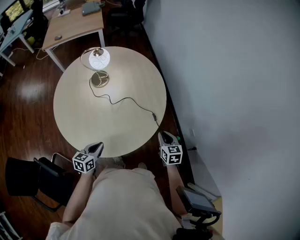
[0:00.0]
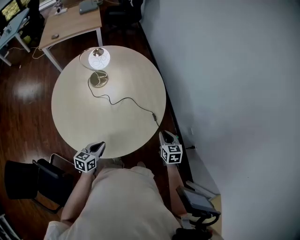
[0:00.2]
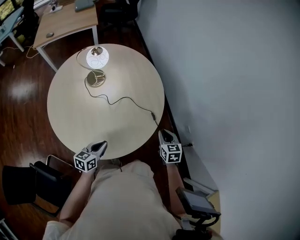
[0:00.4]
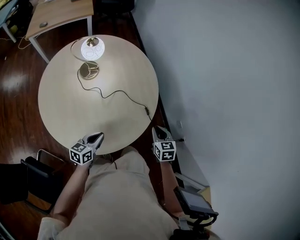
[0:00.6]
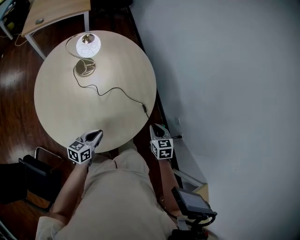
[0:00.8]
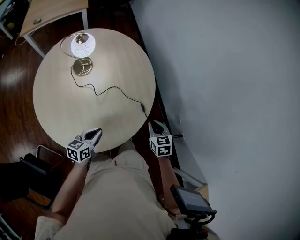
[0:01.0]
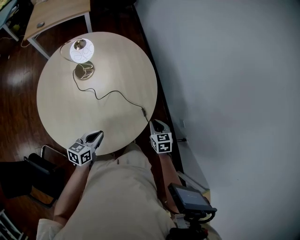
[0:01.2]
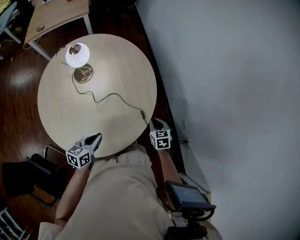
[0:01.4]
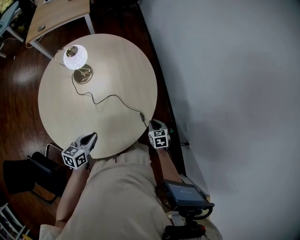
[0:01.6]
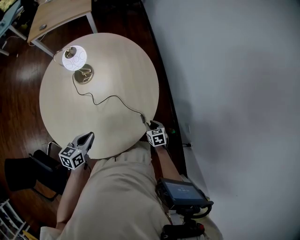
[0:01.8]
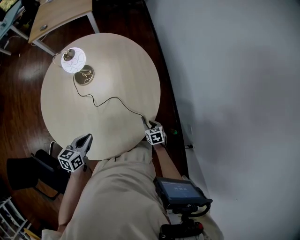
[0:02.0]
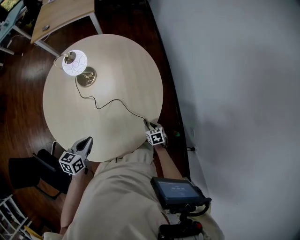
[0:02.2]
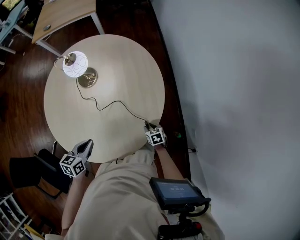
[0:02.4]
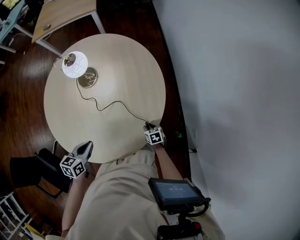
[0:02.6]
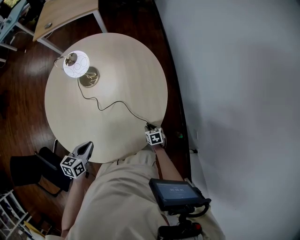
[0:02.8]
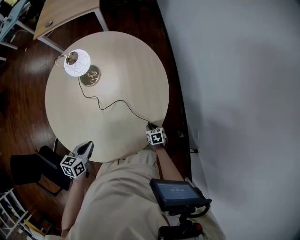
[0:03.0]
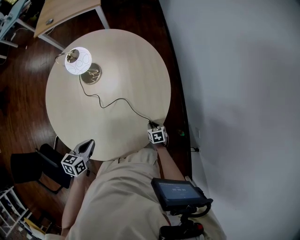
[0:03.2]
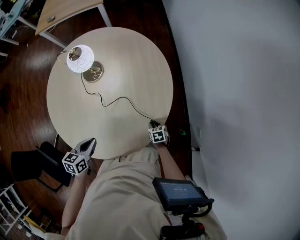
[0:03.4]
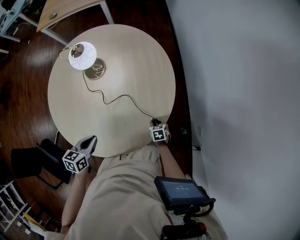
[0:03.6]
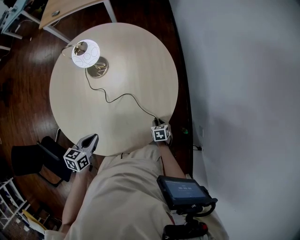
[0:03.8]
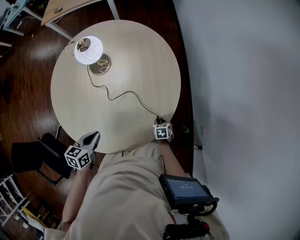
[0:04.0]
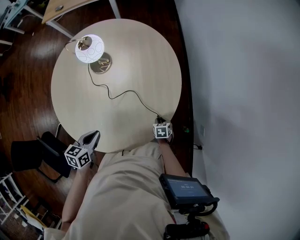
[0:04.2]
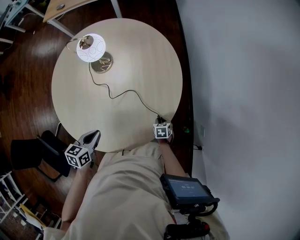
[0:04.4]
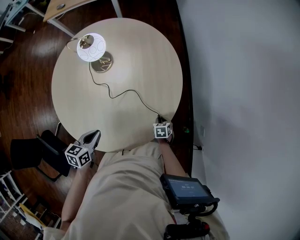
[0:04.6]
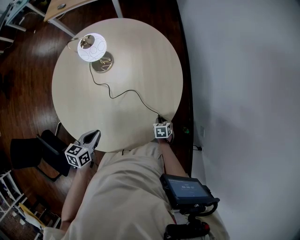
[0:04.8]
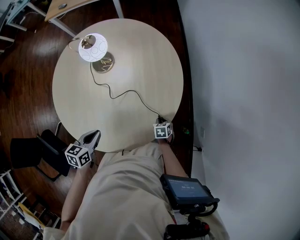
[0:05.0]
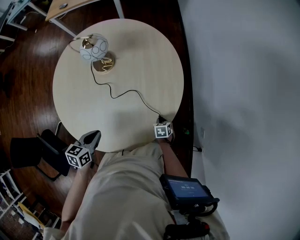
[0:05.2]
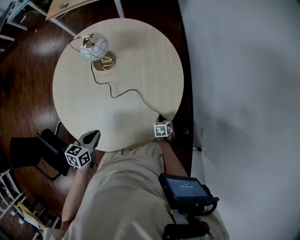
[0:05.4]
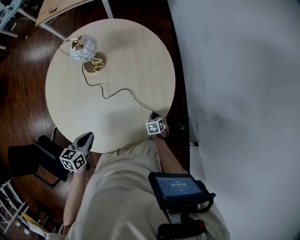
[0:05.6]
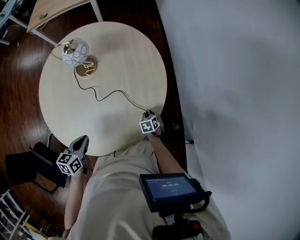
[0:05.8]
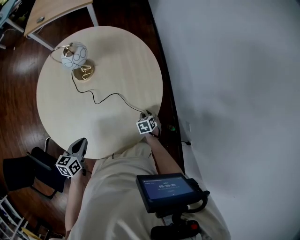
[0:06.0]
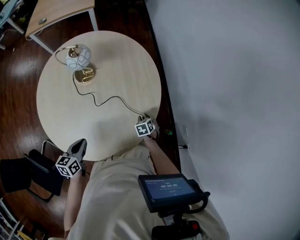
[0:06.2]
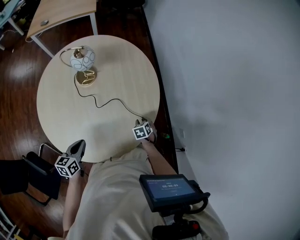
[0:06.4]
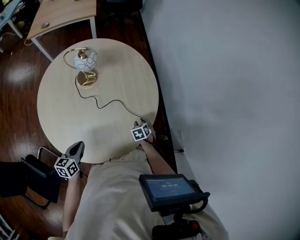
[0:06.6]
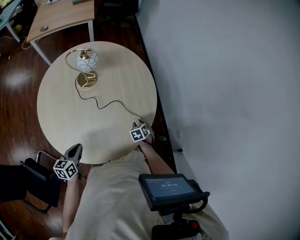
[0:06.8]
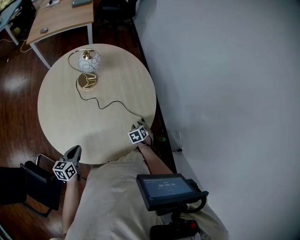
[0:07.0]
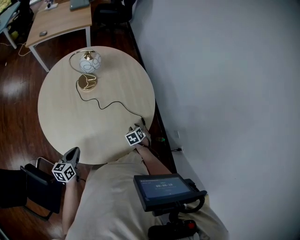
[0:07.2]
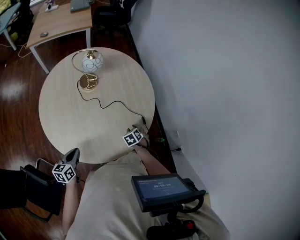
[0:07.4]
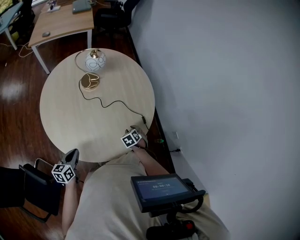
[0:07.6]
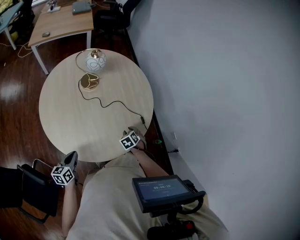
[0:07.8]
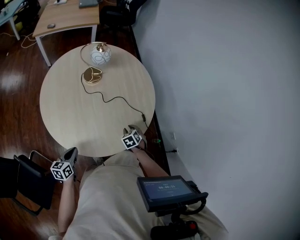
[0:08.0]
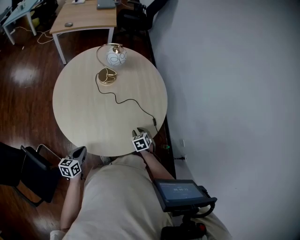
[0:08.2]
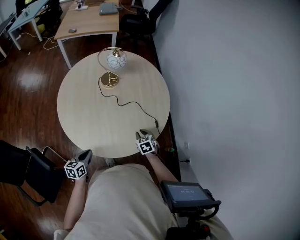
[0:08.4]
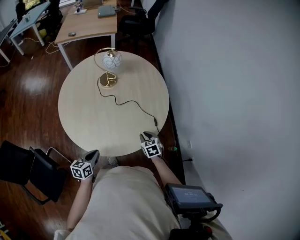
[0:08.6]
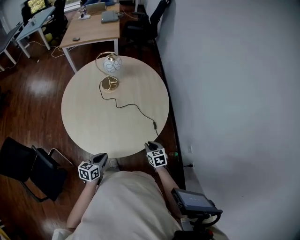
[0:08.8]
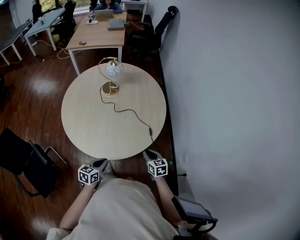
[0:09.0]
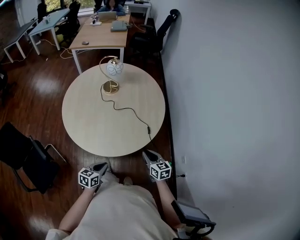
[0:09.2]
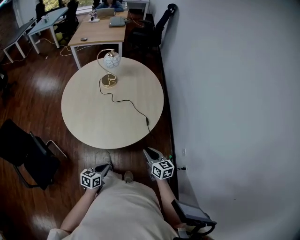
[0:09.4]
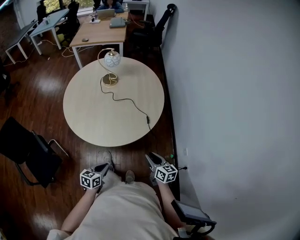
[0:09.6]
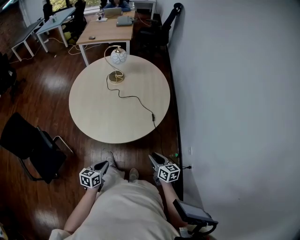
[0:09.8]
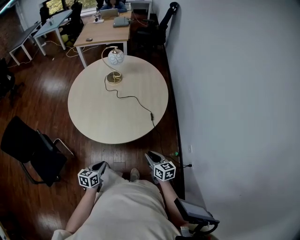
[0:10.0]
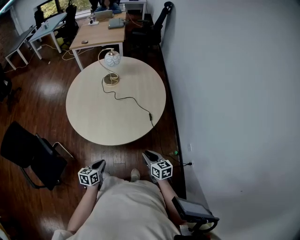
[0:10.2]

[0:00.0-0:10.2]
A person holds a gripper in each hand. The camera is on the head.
0:00.0 to 0:01.4: The left gripper goes approximately 10 cm forward. The right gripper moves forward and downward, some 15 cm.
0:01.4 to 0:03.0: The left gripper shifts by approximately 5 cm, while the right gripper travels downward by approximately 20 cm, and rotates approximately 20 degrees.
0:03.0 to 0:05.8: The grippers move only a little.
0:05.8 to 0:07.2: The right gripper shifts some 15 cm upward, to the left and backward. The left gripper is displaced to the left and backward by approximately 15 cm.
0:07.2 to 0:08.8: The right gripper moves backward, upward and to the right, approximately 15 cm, and changes its angle by roughly 30 degrees. Meanwhile the left gripper heads to the right and backward, covering some 15 cm.
0:08.8 to 0:10.2: The two grippers go roughly 15 cm backward. The right gripper swivels some 20 degrees.

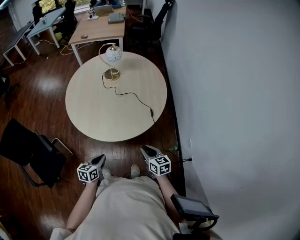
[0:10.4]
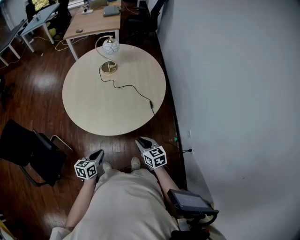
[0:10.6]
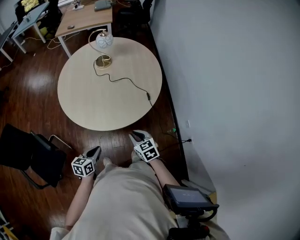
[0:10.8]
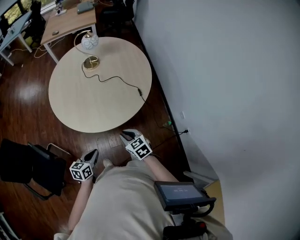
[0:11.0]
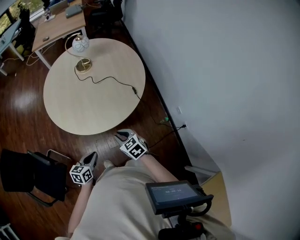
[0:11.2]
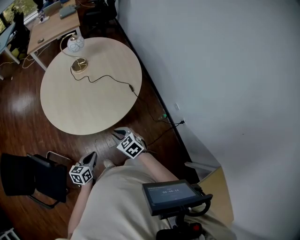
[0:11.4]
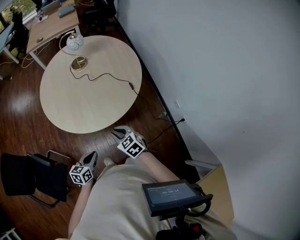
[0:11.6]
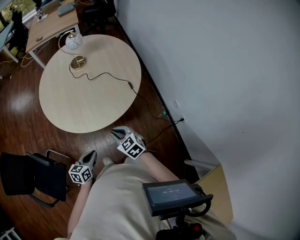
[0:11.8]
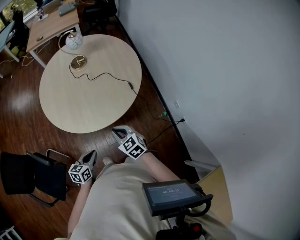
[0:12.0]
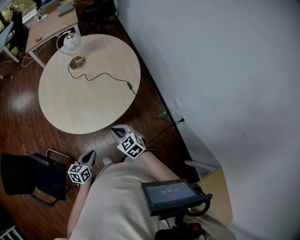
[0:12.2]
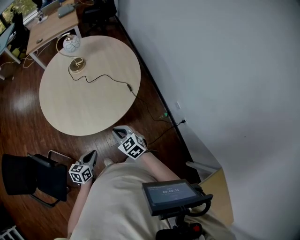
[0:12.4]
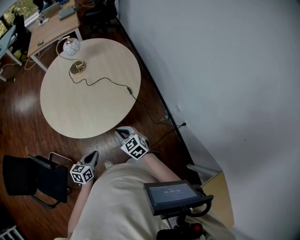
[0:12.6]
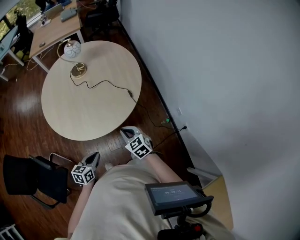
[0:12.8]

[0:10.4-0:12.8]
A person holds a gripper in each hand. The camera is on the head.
0:10.4 to 0:11.6: The left gripper heads to the left, covering about 5 cm; the right gripper travels to the left by some 15 cm, and turns by roughly 20 degrees.
0:11.6 to 0:12.8: The left gripper shifts approximately 5 cm to the right; the right gripper shifts approximately 10 cm to the right.

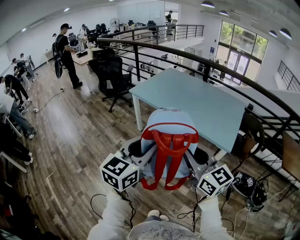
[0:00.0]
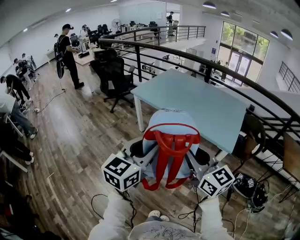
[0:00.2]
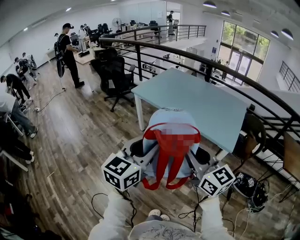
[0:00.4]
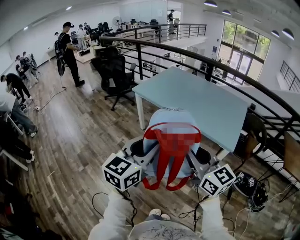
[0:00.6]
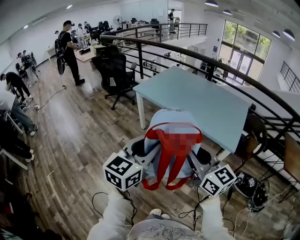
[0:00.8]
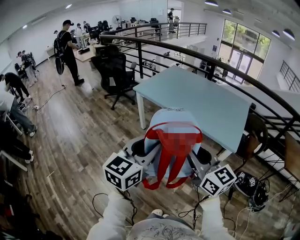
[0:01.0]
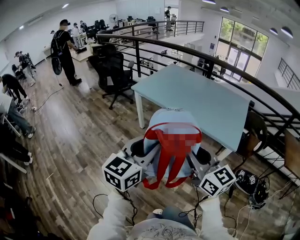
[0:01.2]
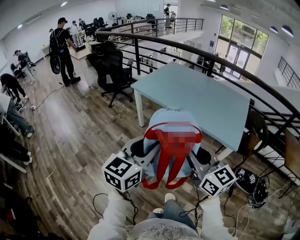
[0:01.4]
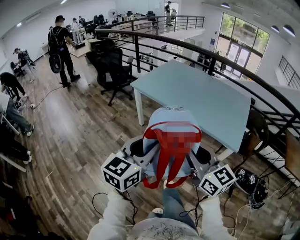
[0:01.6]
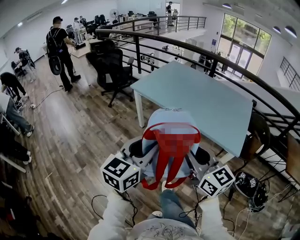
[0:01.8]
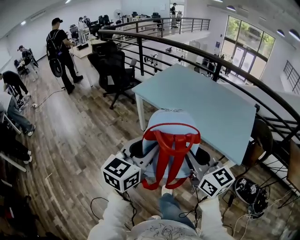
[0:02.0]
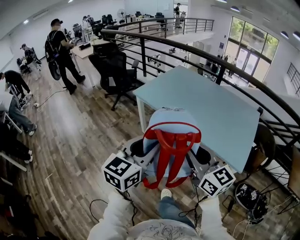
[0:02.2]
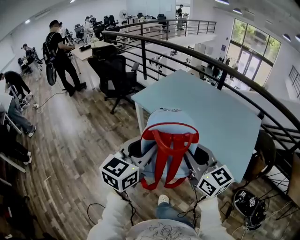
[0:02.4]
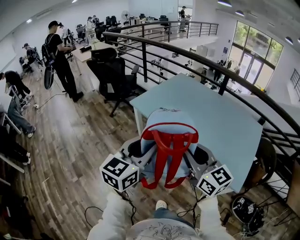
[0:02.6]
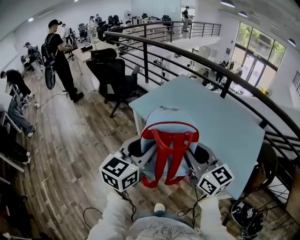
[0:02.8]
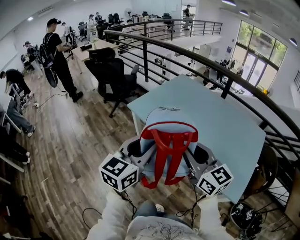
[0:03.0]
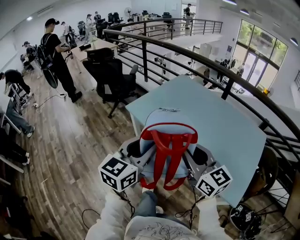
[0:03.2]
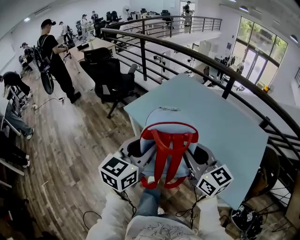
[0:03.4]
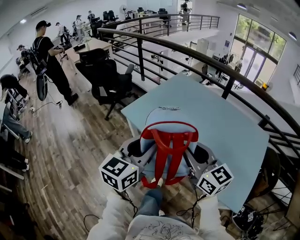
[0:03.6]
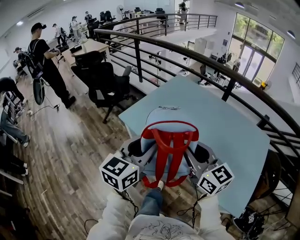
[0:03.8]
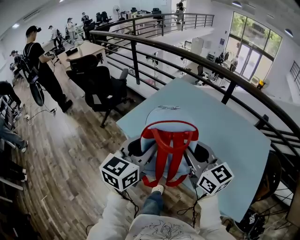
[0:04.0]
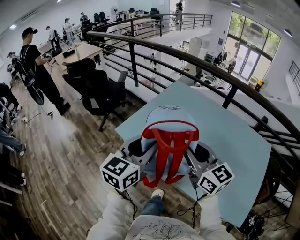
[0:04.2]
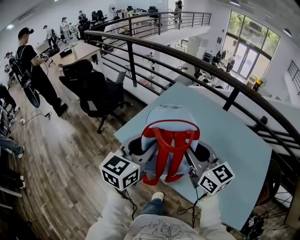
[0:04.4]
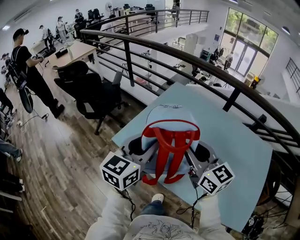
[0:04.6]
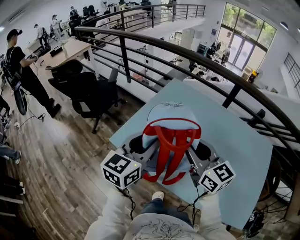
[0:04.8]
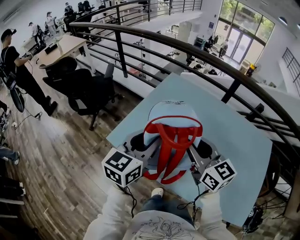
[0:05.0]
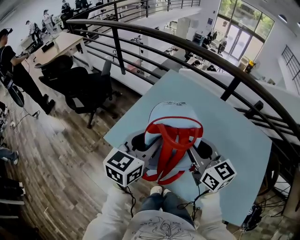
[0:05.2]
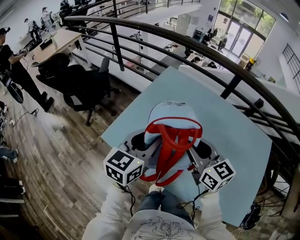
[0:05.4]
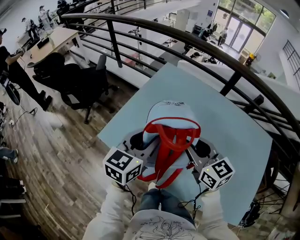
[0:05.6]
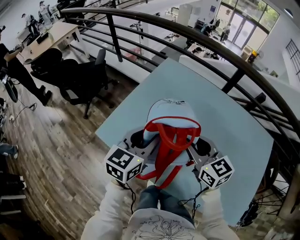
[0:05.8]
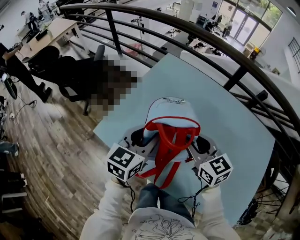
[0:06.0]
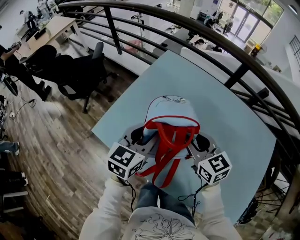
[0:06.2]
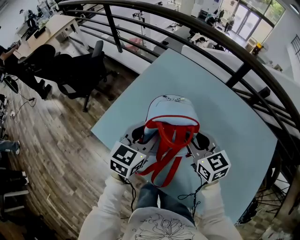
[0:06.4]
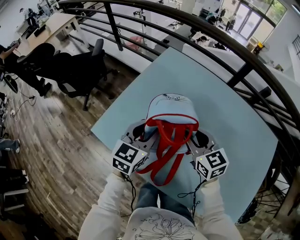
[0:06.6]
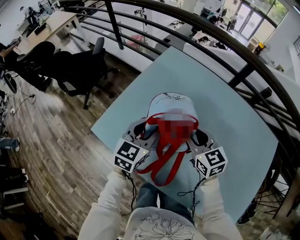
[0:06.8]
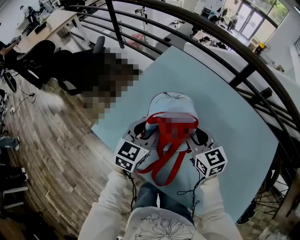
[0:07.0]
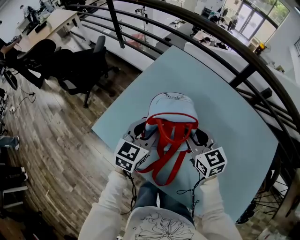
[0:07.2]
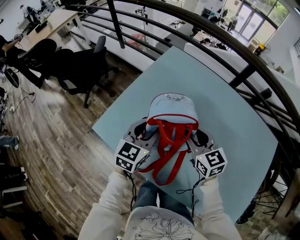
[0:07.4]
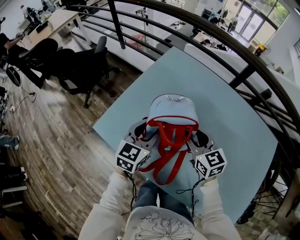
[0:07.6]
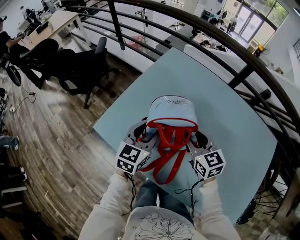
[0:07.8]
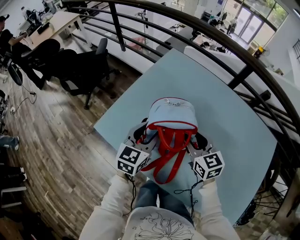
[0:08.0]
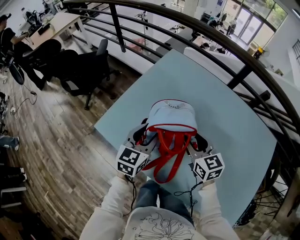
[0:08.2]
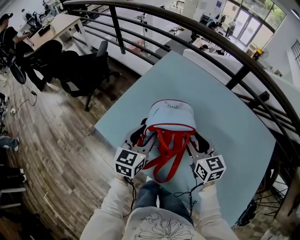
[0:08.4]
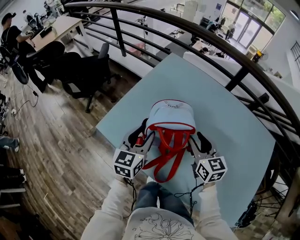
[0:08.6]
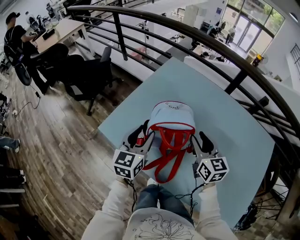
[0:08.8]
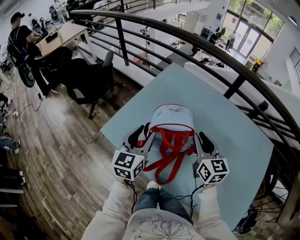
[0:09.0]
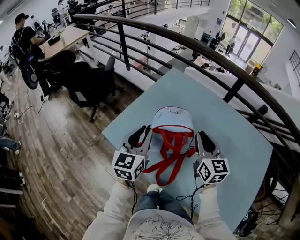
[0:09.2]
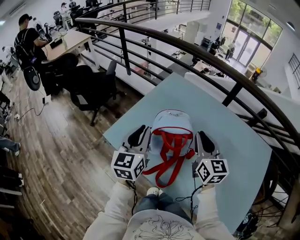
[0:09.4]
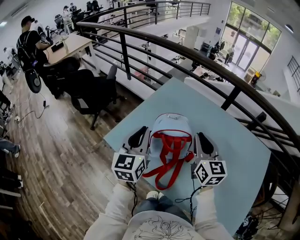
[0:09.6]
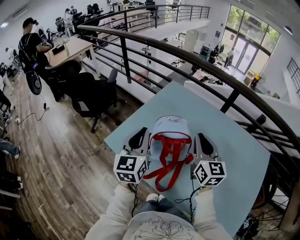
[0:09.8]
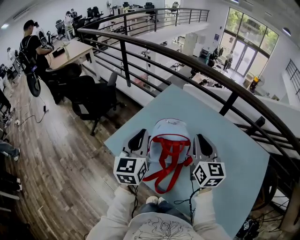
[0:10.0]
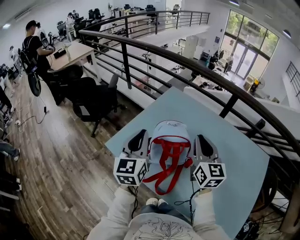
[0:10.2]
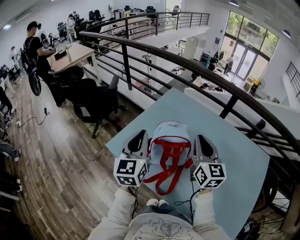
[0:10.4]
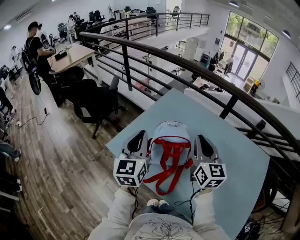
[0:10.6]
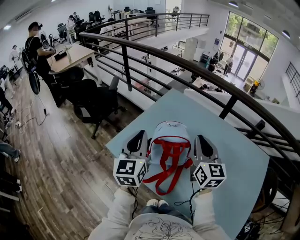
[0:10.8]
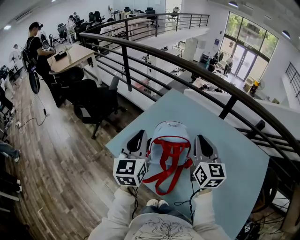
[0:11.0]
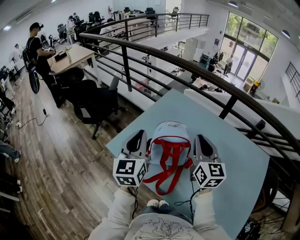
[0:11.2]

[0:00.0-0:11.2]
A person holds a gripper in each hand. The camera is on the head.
0:00.0 to 0:01.6: Both grippers travel together forward, roughly 5 cm.
0:01.6 to 0:03.2: Both grippers move forward, some 40 cm.
0:03.2 to 0:04.8: Both grippers travel together forward, about 40 cm.
0:04.8 to 0:06.4: The grippers both shift downward, forward and to the right by roughly 20 cm.
0:06.4 to 0:08.0: The grippers move only a little.
0:08.0 to 0:09.6: Both grippers move upward, some 15 cm. The right gripper turns by approximately 20 degrees, and closes up; the left gripper changes its angle by roughly 20 degrees, and closes.
0:09.6 to 0:11.2: The left gripper changes place by about 5 cm.
